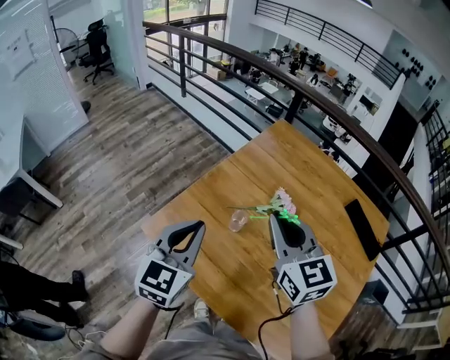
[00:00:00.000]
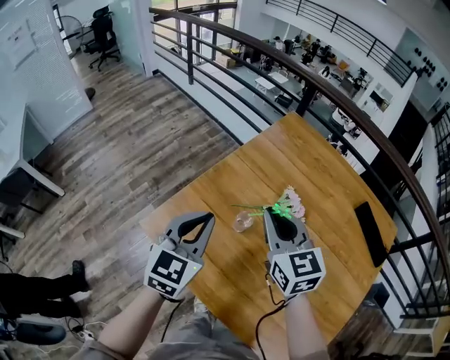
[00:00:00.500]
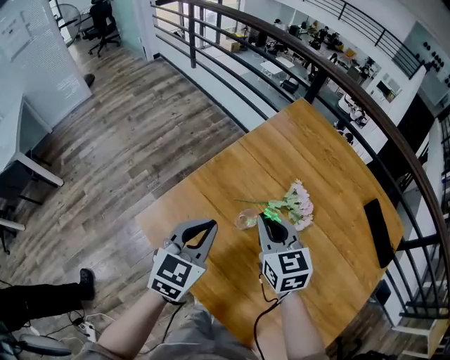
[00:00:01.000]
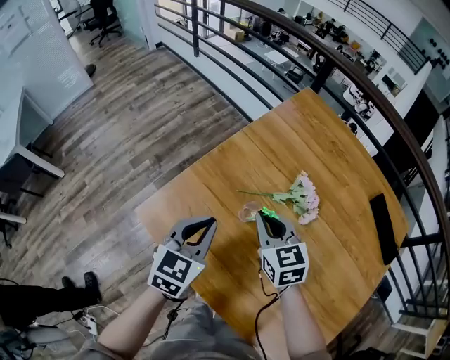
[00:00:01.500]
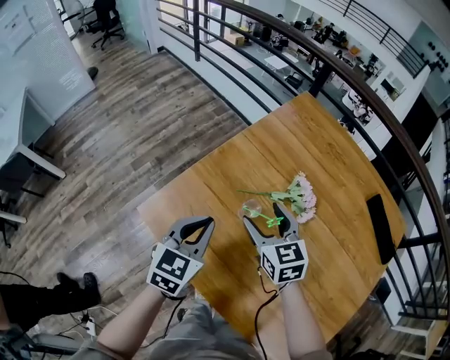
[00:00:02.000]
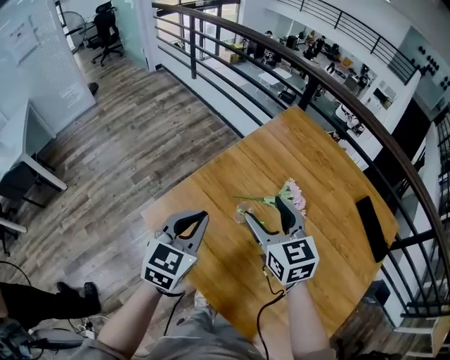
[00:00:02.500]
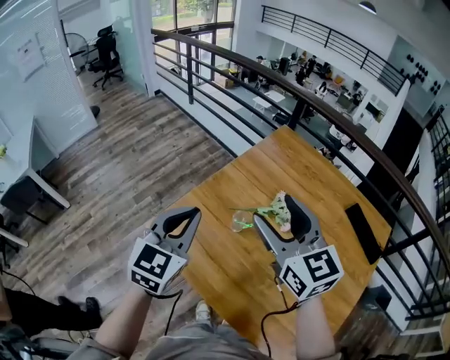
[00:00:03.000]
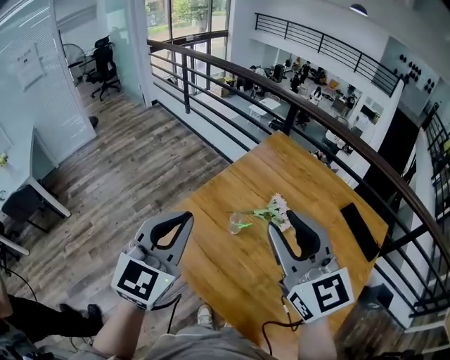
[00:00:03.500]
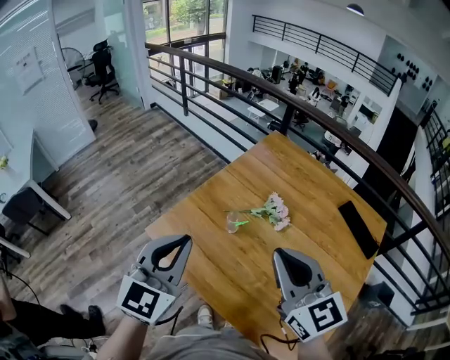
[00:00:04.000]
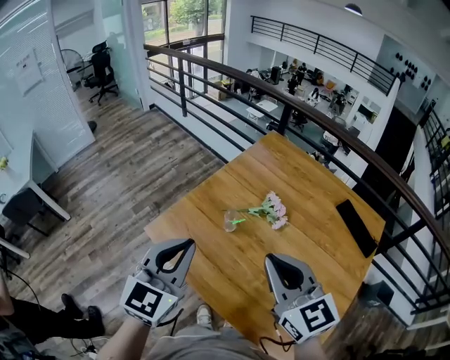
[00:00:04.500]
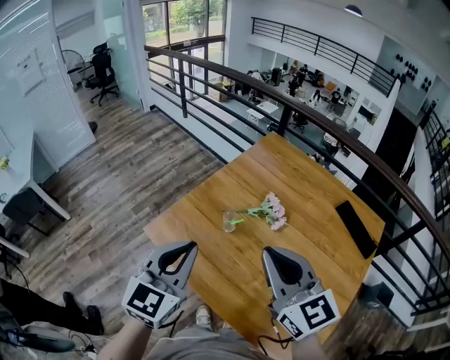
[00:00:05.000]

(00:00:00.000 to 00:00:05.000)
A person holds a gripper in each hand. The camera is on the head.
00:00:00.000 - 00:00:02.500: The grippers both shift downward by roughly 10 cm. The right gripper opens.
00:00:02.500 - 00:00:05.000: The left gripper is displaced upward and backward by some 20 cm, while the right gripper moves backward and upward, approximately 25 cm, and closes its fingers.

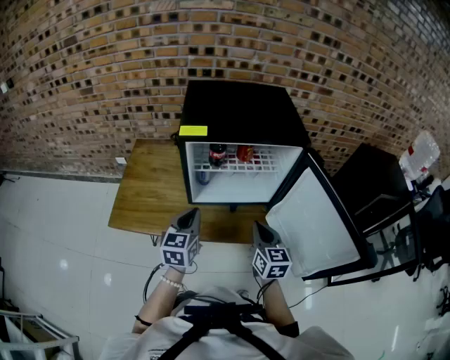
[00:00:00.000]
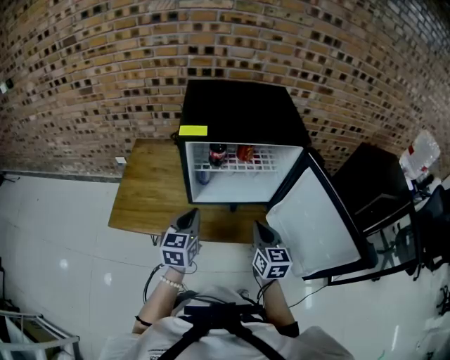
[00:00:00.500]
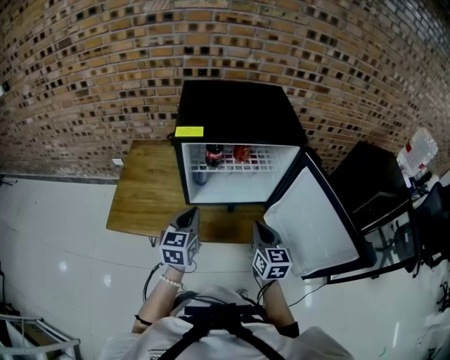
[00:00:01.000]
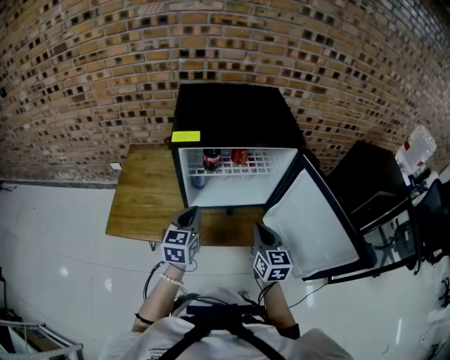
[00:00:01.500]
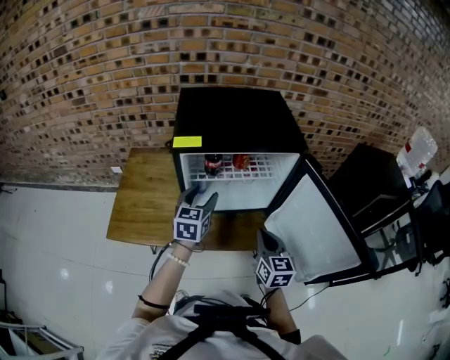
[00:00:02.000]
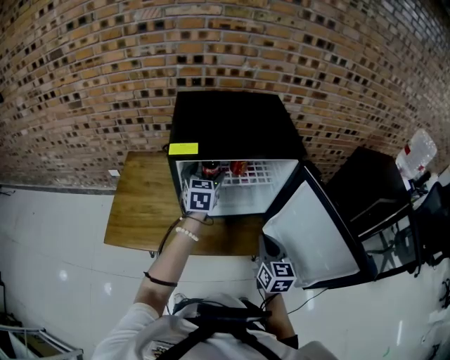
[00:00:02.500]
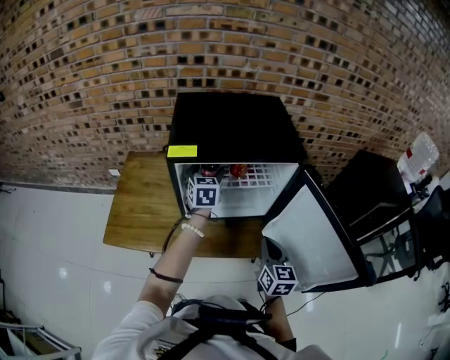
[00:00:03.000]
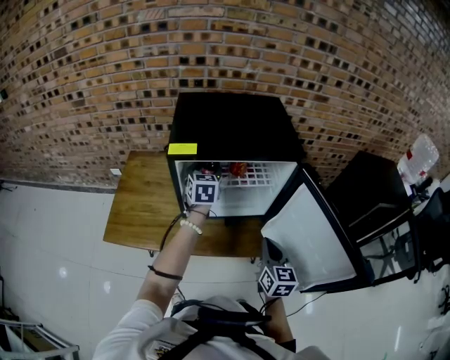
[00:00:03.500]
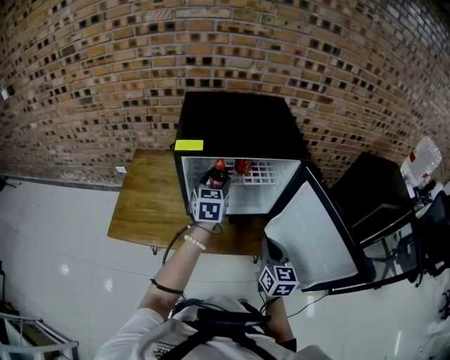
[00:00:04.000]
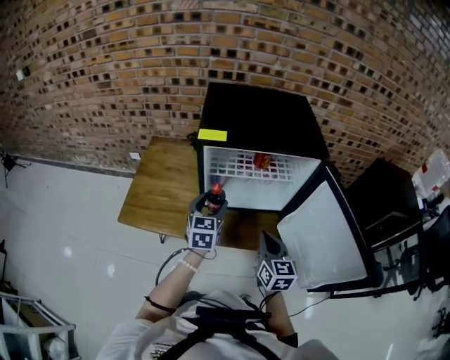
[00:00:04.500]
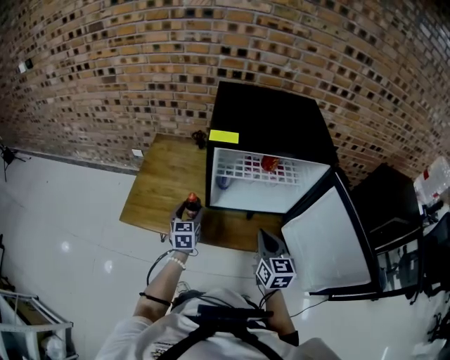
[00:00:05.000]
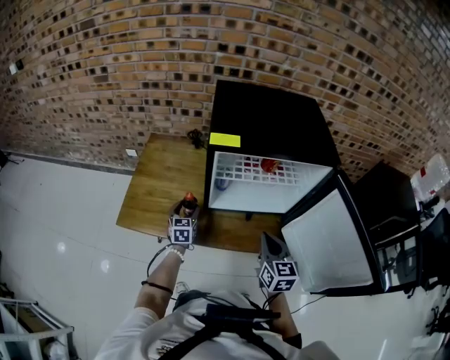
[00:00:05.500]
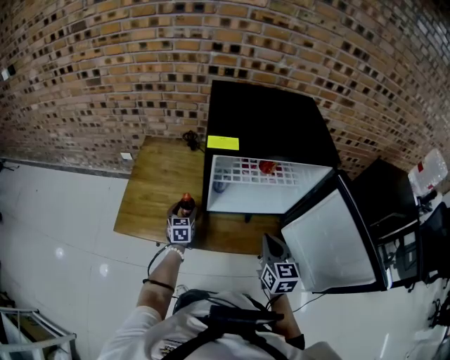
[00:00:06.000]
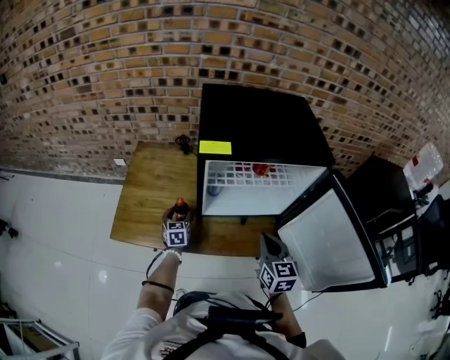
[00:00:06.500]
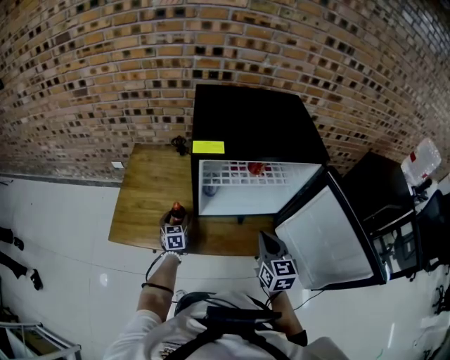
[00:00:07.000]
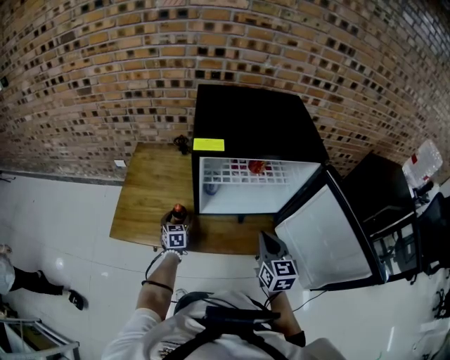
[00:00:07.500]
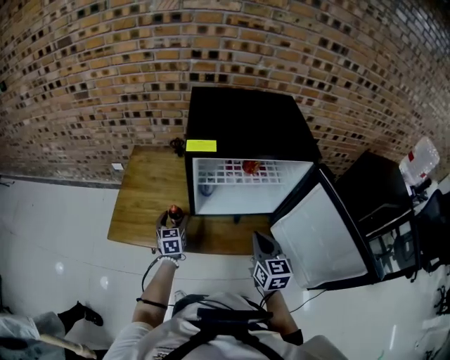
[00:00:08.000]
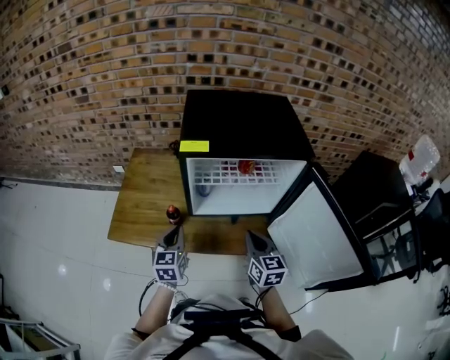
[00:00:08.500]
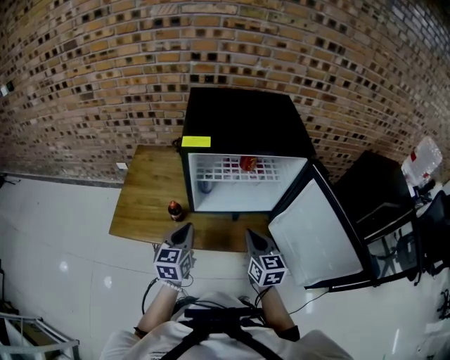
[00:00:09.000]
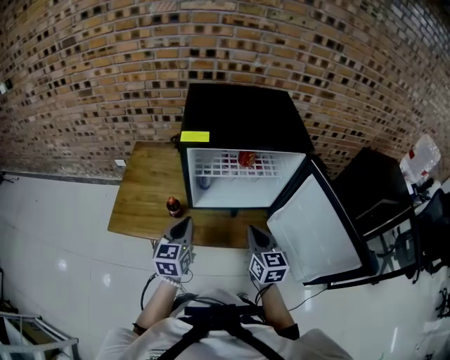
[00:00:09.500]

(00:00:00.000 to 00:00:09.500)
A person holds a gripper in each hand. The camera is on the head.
00:00:00.000 - 00:00:02.000: The left gripper moves forward, roughly 10 cm, and opens up.
00:00:02.000 - 00:00:04.000: The left gripper travels forward by some 5 cm.
00:00:04.000 - 00:00:05.500: The left gripper heads downward and to the left, covering some 30 cm. Meanwhile the right gripper goes roughly 10 cm to the left.
00:00:05.500 - 00:00:07.500: The left gripper goes about 5 cm downward.
00:00:07.500 - 00:00:09.500: The left gripper moves upward, backward and to the right, about 30 cm, turns by approximately 20 degrees, and closes.

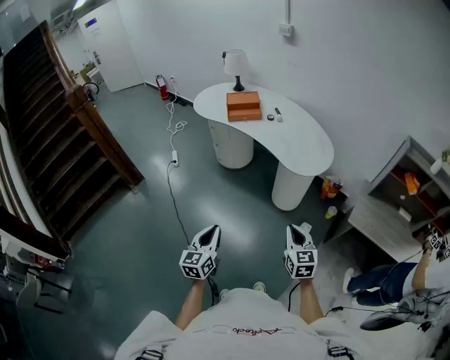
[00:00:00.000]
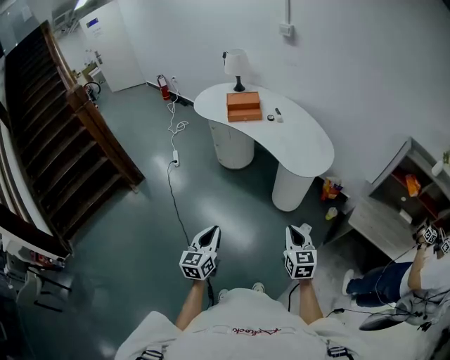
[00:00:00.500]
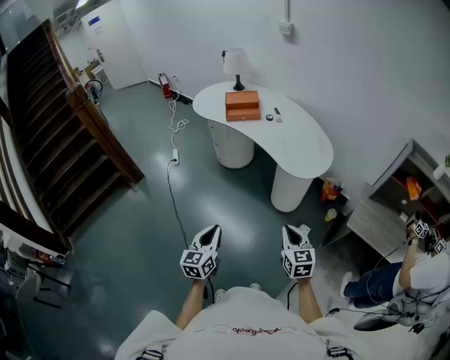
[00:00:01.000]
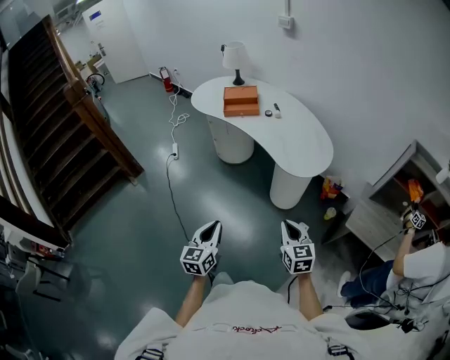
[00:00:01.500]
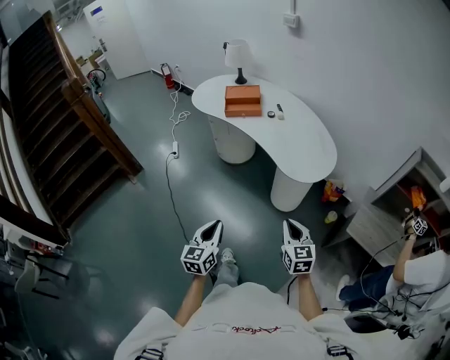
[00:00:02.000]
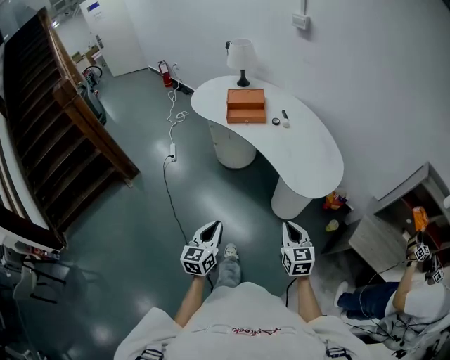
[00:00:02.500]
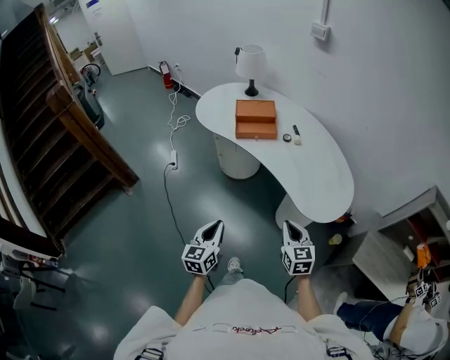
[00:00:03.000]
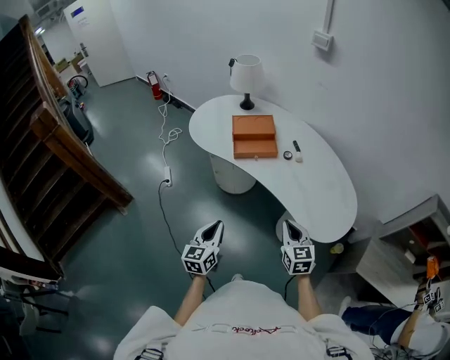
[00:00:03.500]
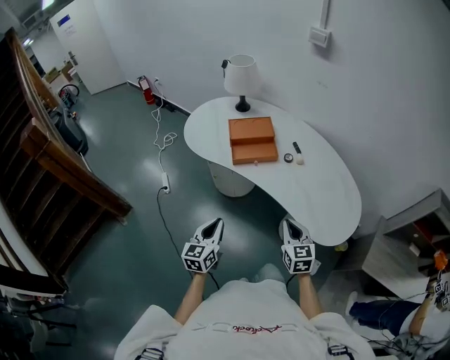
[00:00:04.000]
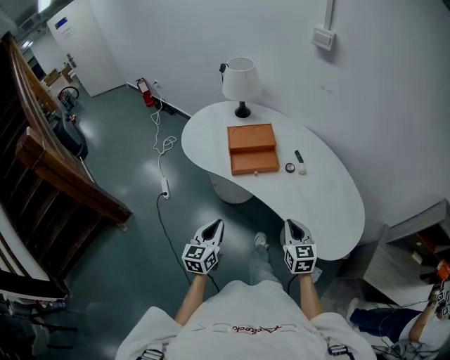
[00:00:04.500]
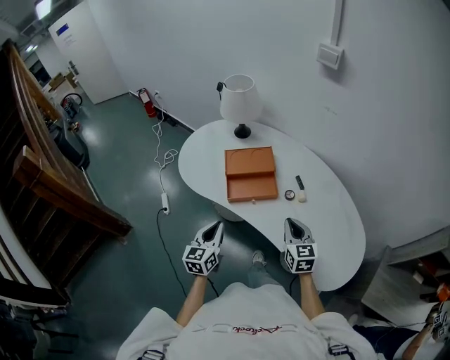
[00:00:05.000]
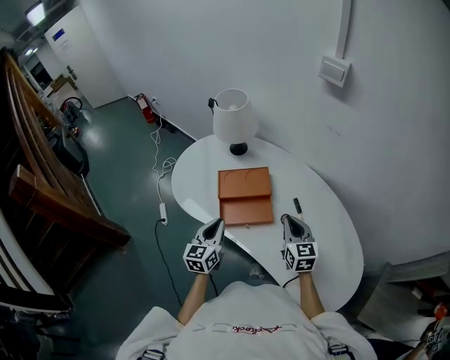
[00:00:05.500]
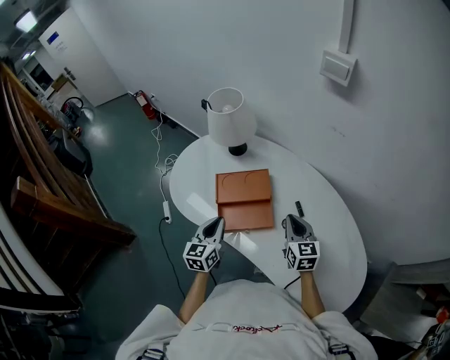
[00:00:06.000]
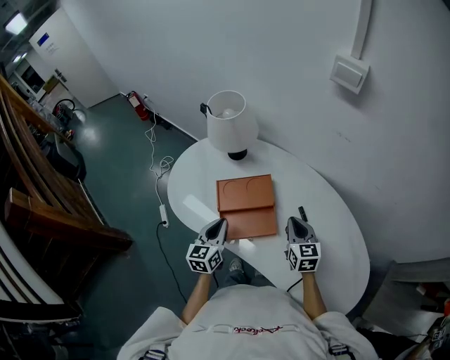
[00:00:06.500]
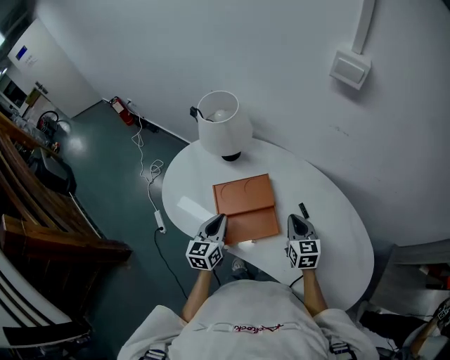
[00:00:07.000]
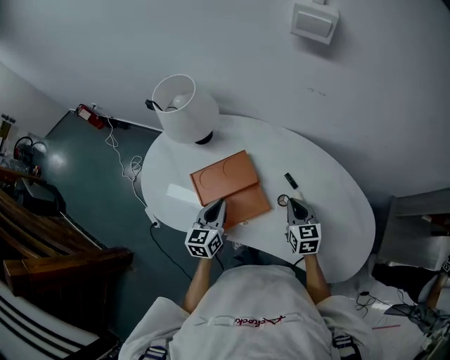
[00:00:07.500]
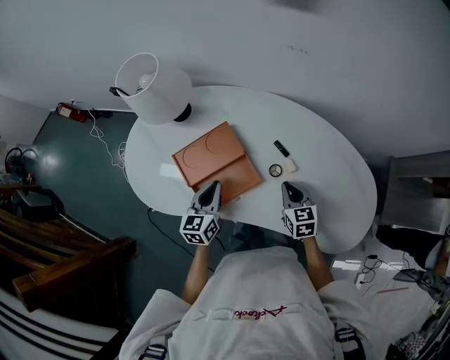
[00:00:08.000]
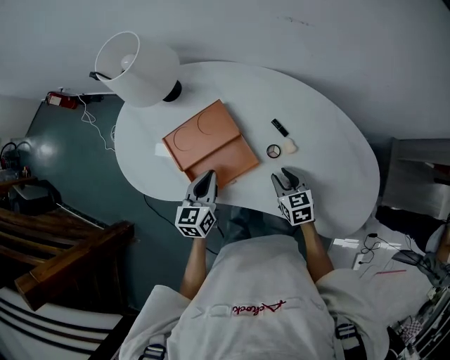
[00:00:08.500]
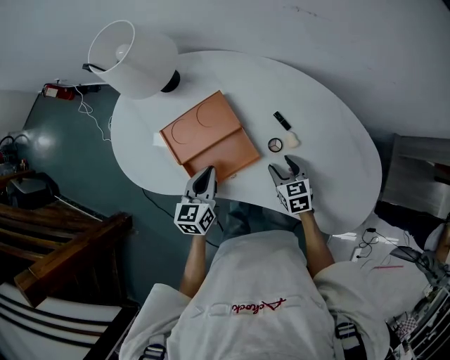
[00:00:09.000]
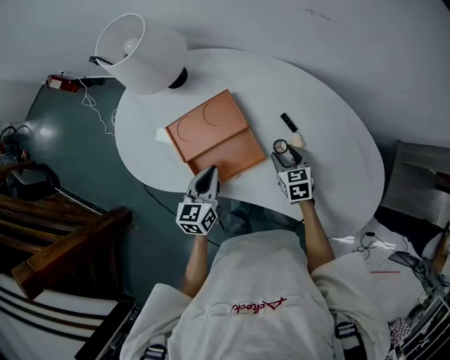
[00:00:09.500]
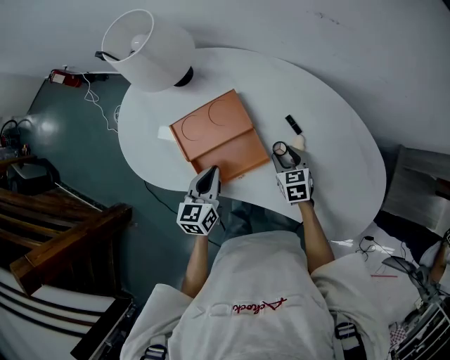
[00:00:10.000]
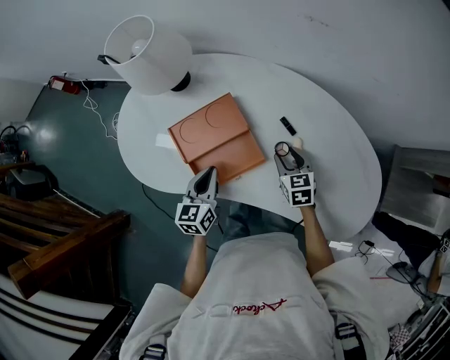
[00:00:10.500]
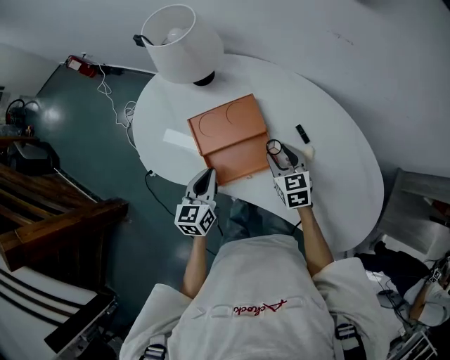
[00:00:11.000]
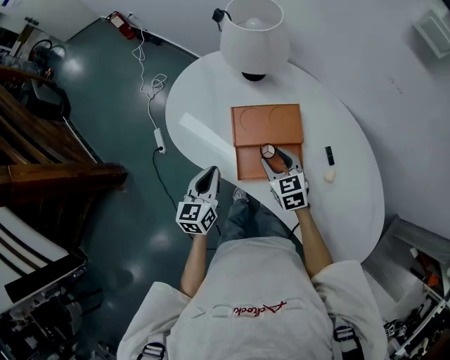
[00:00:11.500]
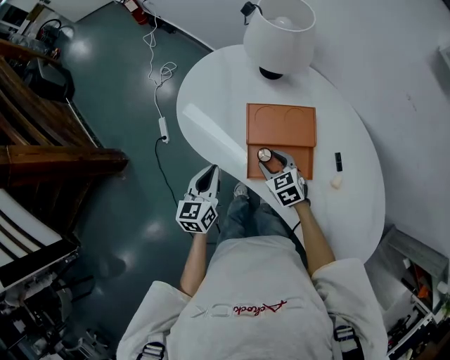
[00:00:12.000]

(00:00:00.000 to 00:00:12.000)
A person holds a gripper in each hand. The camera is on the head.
00:00:00.000 - 00:00:02.000: The right gripper goes about 10 cm forward and to the right, while the left gripper is displaced to the right and forward by some 10 cm.
00:00:02.000 - 00:00:04.000: The right gripper moves forward and to the left, some 40 cm, while the left gripper travels forward by roughly 40 cm.
00:00:04.000 - 00:00:06.000: The two grippers go some 40 cm forward.
00:00:06.000 - 00:00:08.000: The left gripper travels forward and downward by approximately 10 cm, and swivels approximately 20 degrees. The right gripper travels downward by roughly 10 cm, and turns by about 30 degrees.
00:00:08.000 - 00:00:10.000: The right gripper moves downward, some 10 cm, and opens.
00:00:10.000 - 00:00:12.000: The left gripper moves about 20 cm, and turns by roughly 30 degrees. Meanwhile the right gripper moves roughly 25 cm, and turns by about 40 degrees.
